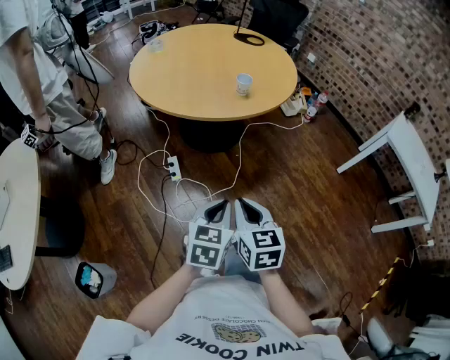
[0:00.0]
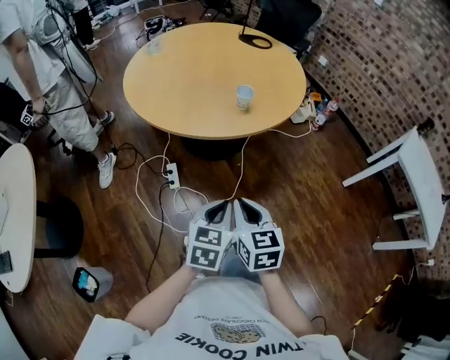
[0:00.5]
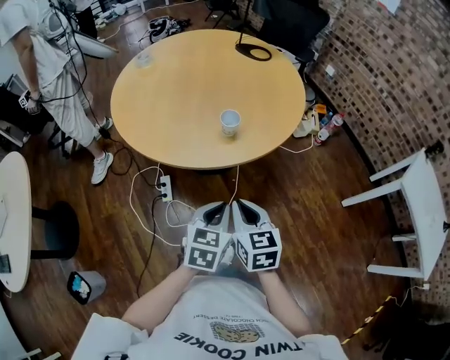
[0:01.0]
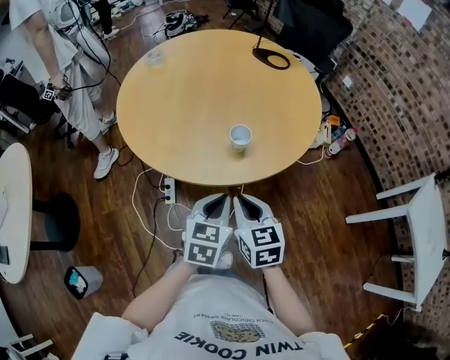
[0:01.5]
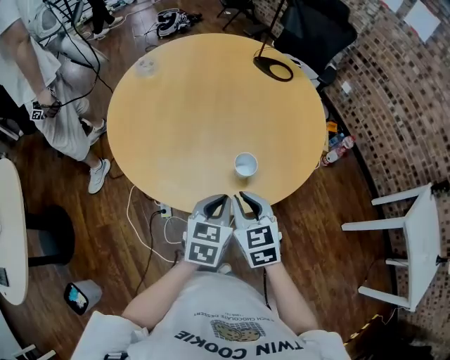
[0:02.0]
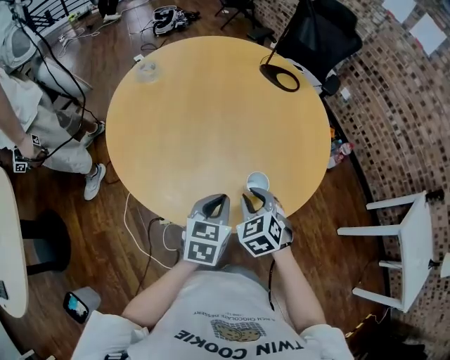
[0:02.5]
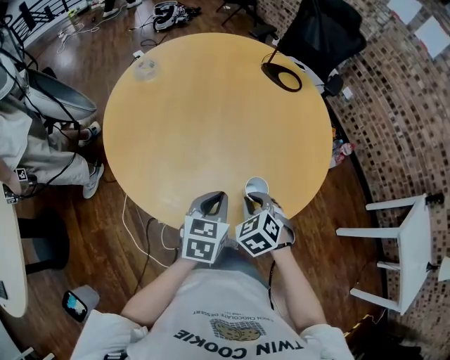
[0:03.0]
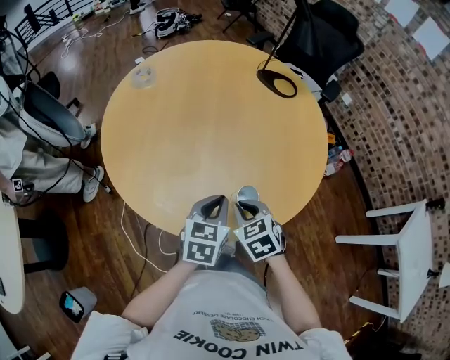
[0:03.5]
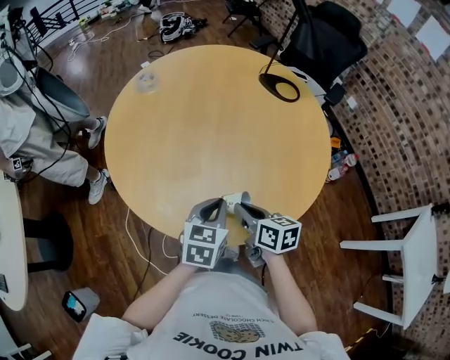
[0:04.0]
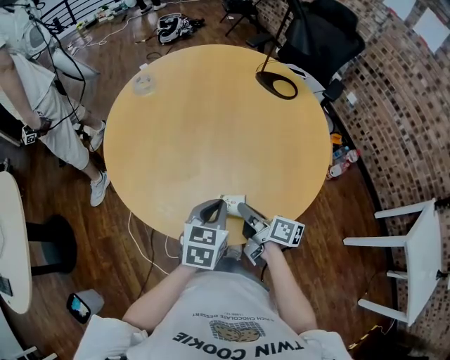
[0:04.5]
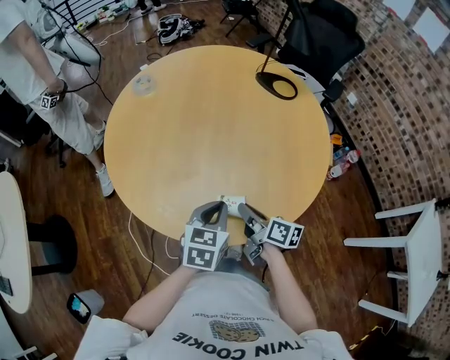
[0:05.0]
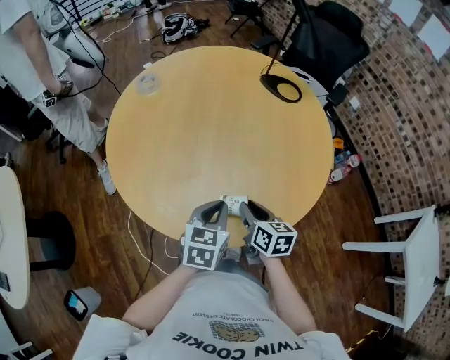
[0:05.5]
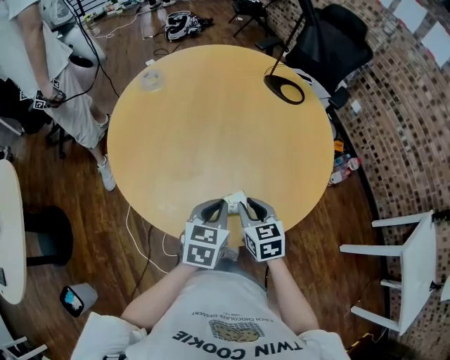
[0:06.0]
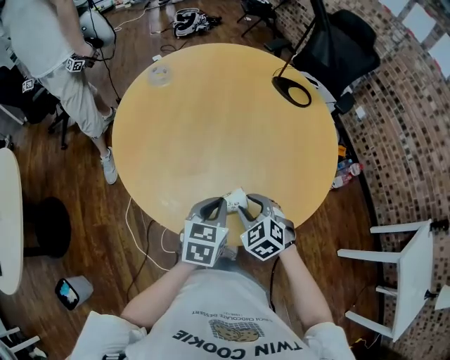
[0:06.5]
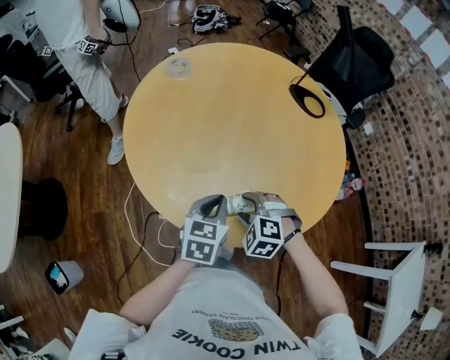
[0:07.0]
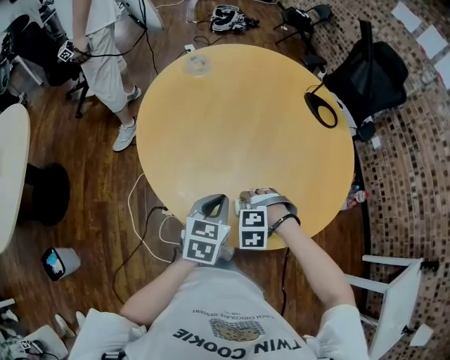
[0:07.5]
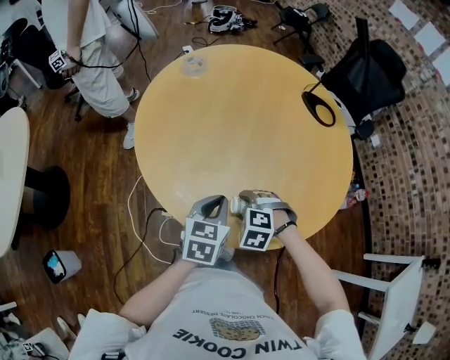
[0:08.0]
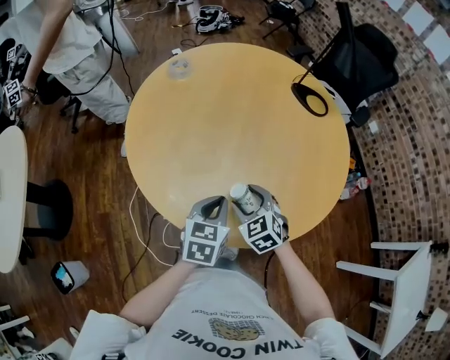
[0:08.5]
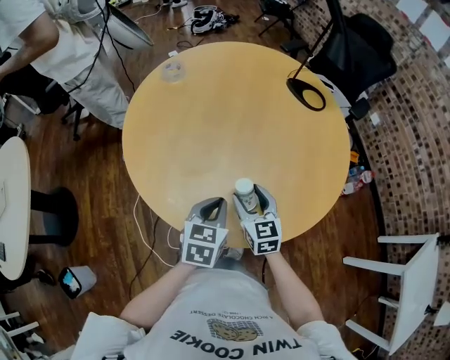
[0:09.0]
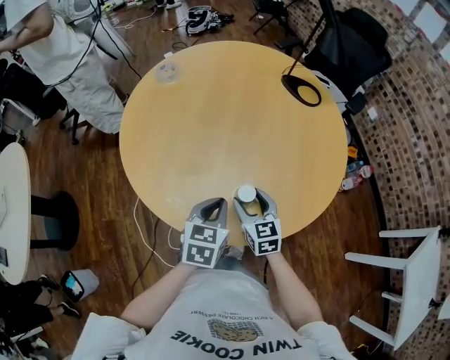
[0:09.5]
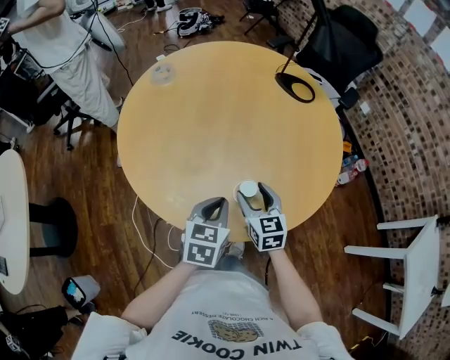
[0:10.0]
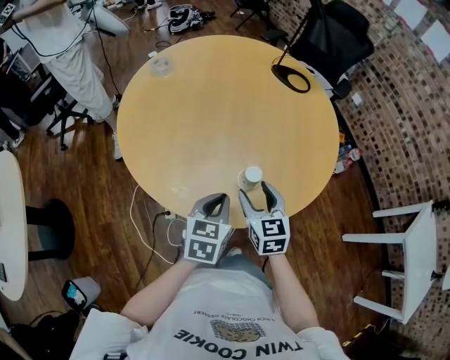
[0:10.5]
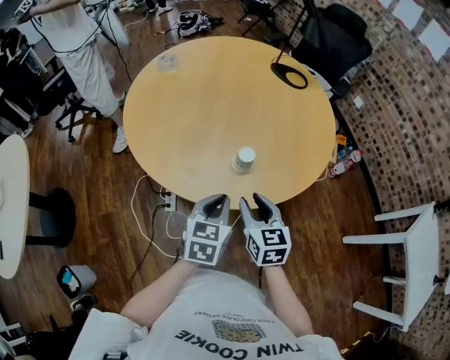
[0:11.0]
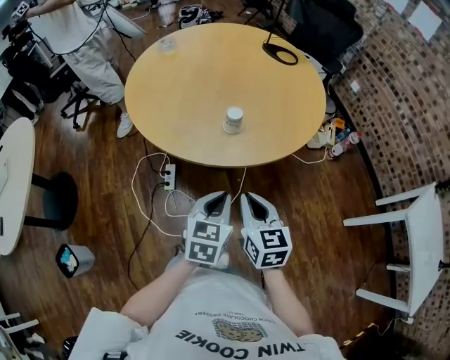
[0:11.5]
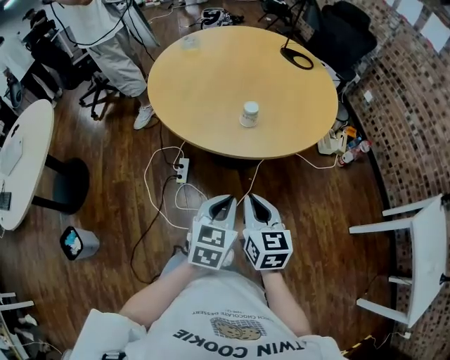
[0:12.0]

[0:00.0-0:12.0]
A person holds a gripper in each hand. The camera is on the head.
0:00.0 to 0:02.0: Both grippers are carried forward, roughly 50 cm. The right gripper rotates approximately 20 degrees.
0:02.0 to 0:04.0: The grippers both shift forward by some 10 cm. The right gripper rotates about 40 degrees.
0:04.0 to 0:06.0: The right gripper changes its angle by approximately 30 degrees.
0:06.0 to 0:08.0: The left gripper shifts by roughly 10 cm; the right gripper changes place by roughly 10 cm, rolls counterclockwise, seen from behind, by about 70 degrees, and opens.
0:08.0 to 0:10.0: The right gripper moves to the right and upward, roughly 10 cm, and twists roughly 70 degrees clockwise, seen from behind. Meanwhile the left gripper is displaced to the right by approximately 5 cm.
0:10.0 to 0:12.0: Both grippers move backward, approximately 35 cm. The right gripper closes its fingers.

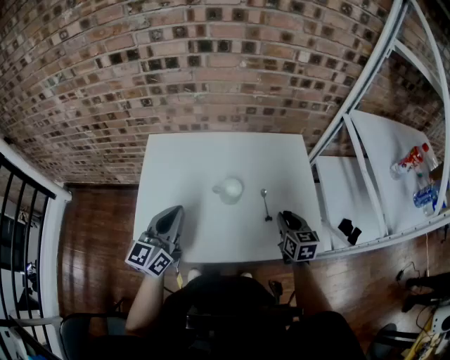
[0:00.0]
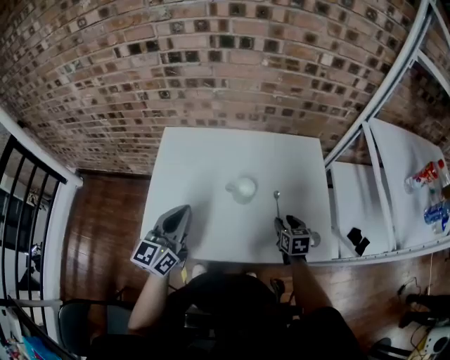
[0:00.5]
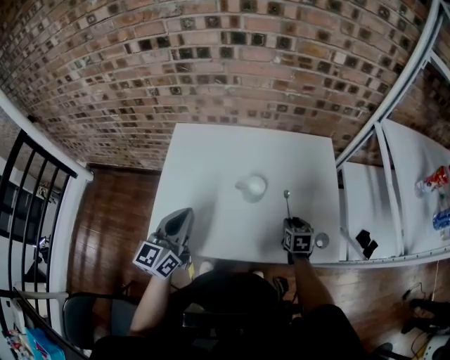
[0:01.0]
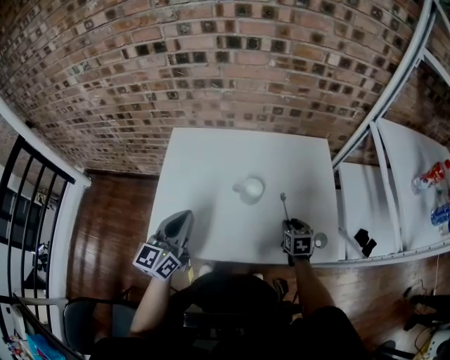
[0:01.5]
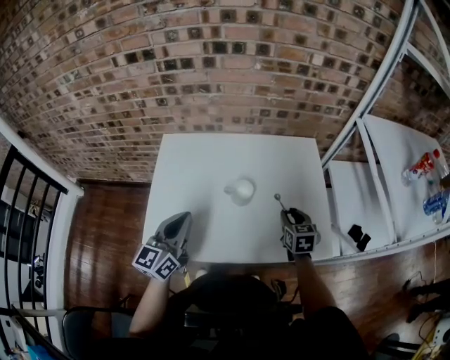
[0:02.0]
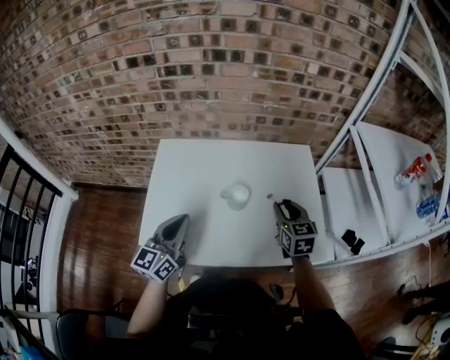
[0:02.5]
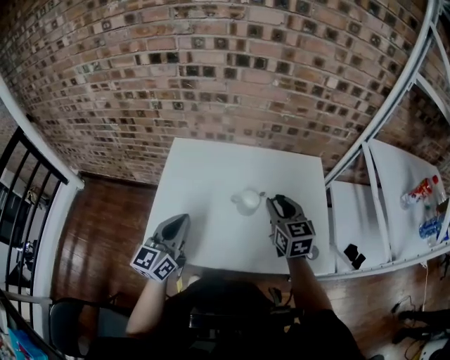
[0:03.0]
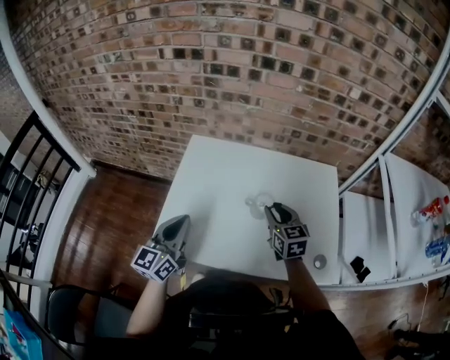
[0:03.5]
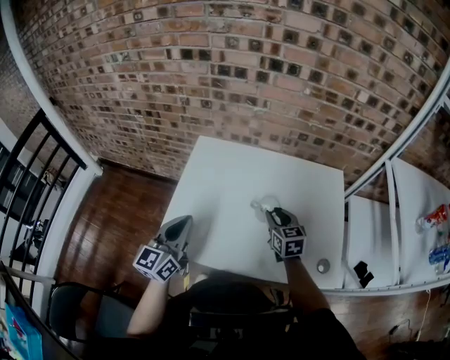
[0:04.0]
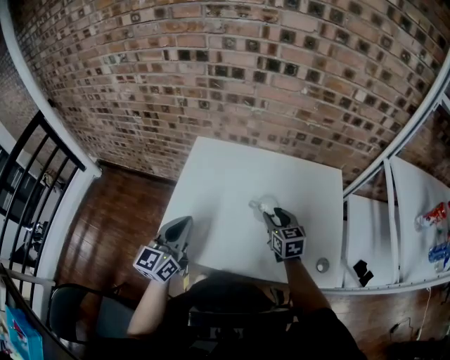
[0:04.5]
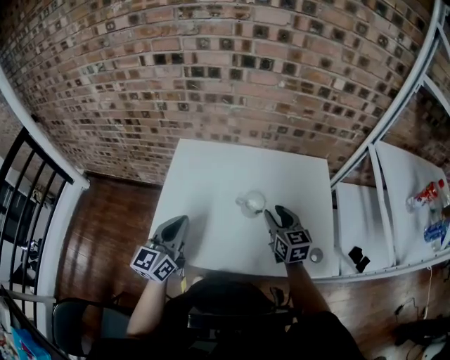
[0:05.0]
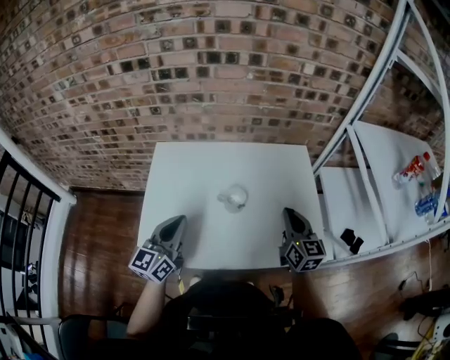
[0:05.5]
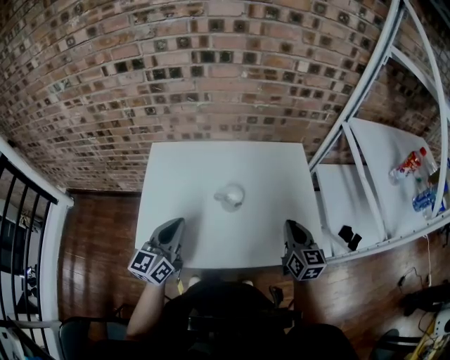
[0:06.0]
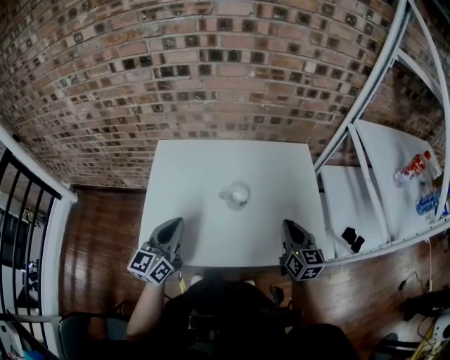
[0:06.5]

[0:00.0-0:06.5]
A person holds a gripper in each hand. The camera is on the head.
0:00.0 to 0:02.0: The right gripper travels downward and back again, approximately 10 cm each way.
0:02.0 to 0:04.5: The right gripper travels to the left by some 15 cm, and turns by approximately 20 degrees. Meanwhile the left gripper goes approximately 5 cm to the left.
0:04.5 to 0:06.5: The right gripper goes roughly 20 cm to the right, backward and upward, changes its angle by roughly 30 degrees, and closes, while the left gripper travels to the right by some 5 cm.

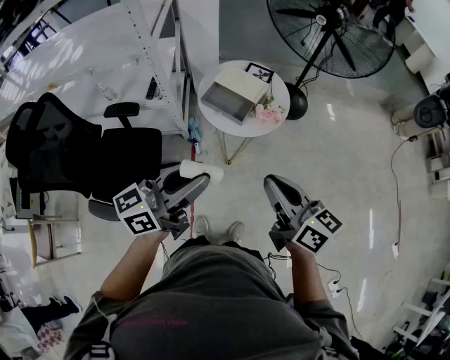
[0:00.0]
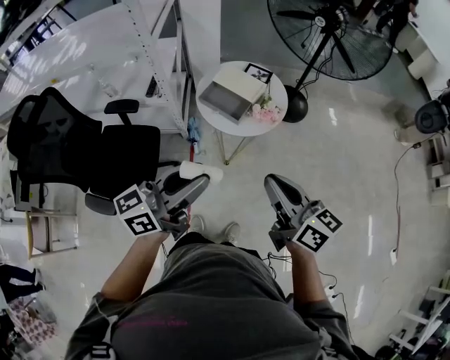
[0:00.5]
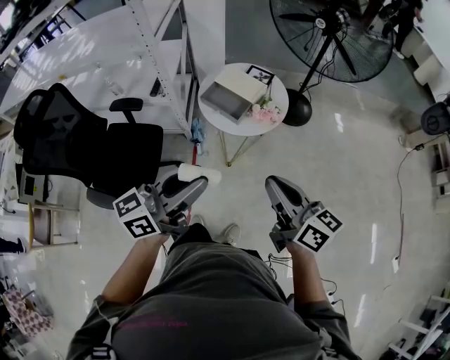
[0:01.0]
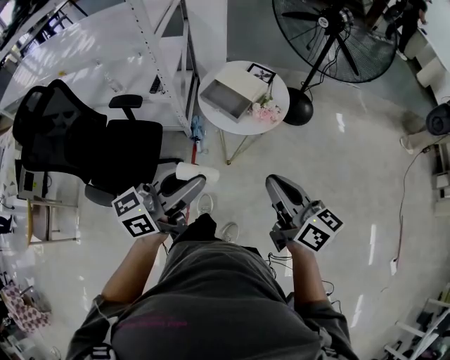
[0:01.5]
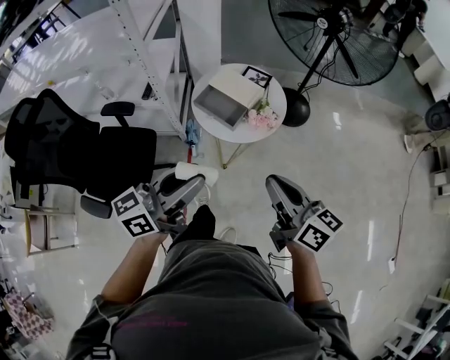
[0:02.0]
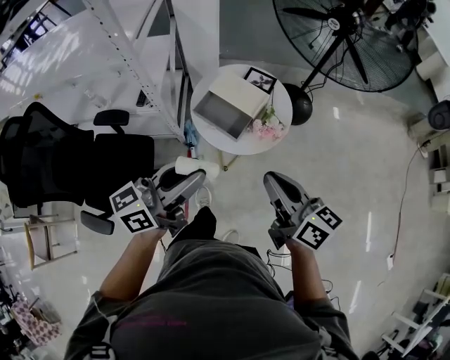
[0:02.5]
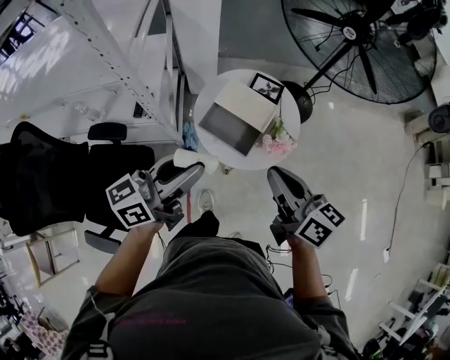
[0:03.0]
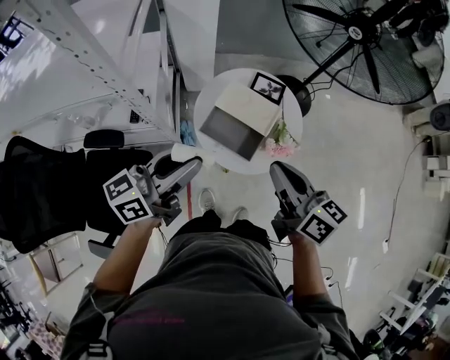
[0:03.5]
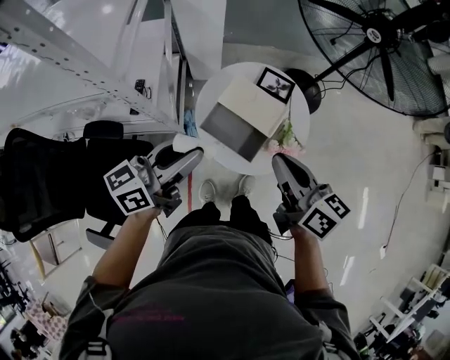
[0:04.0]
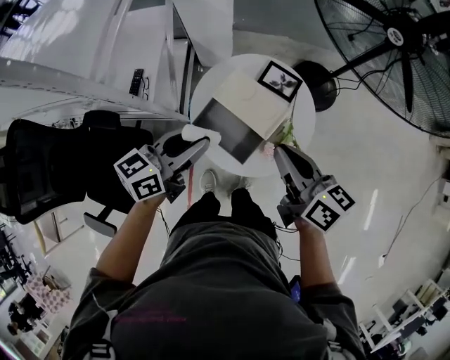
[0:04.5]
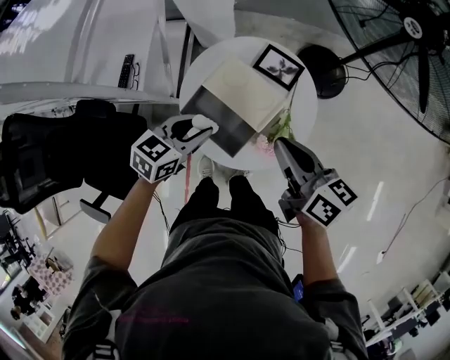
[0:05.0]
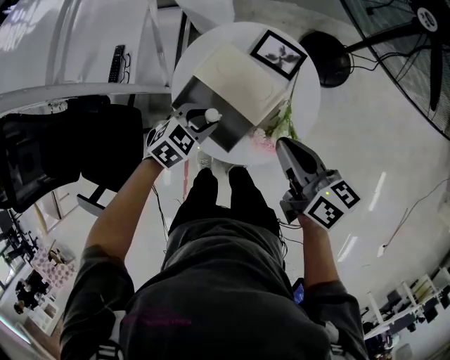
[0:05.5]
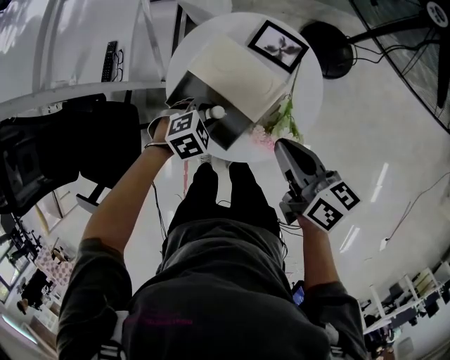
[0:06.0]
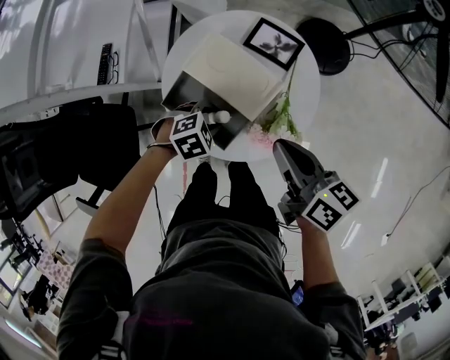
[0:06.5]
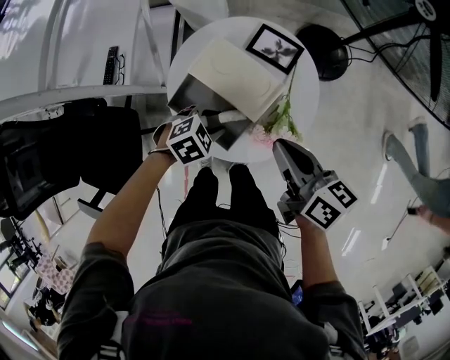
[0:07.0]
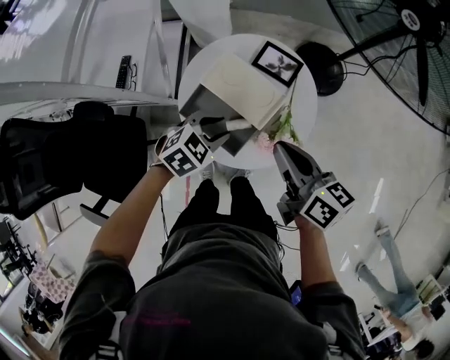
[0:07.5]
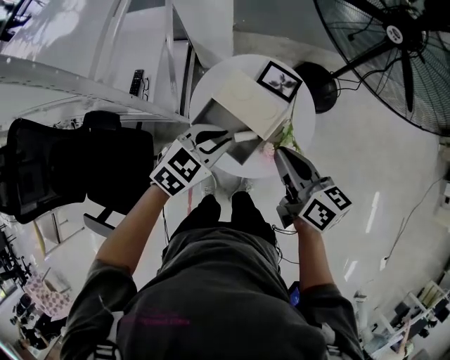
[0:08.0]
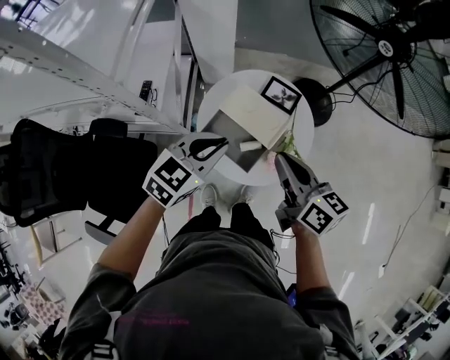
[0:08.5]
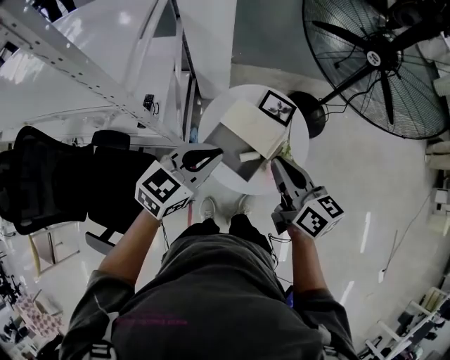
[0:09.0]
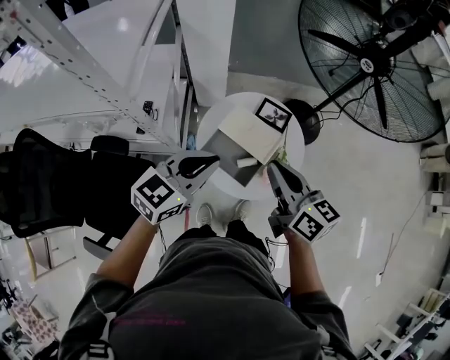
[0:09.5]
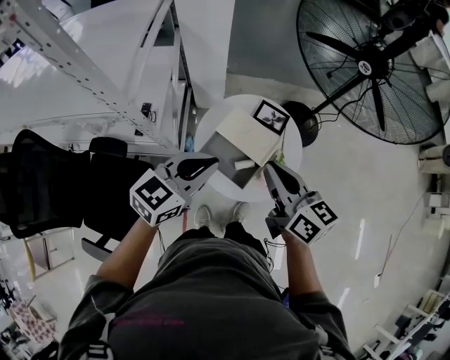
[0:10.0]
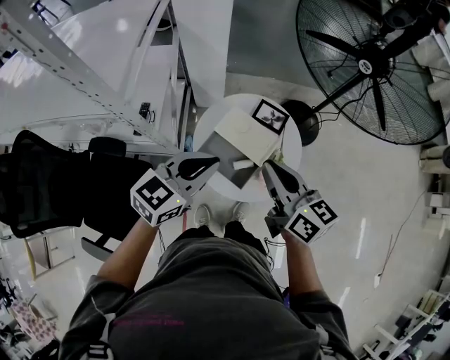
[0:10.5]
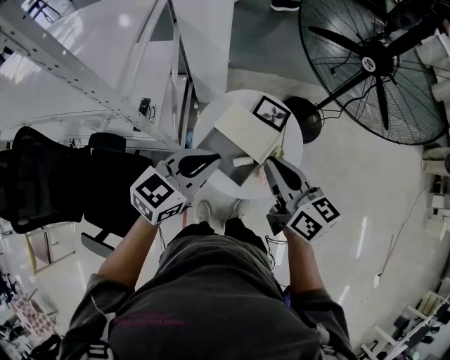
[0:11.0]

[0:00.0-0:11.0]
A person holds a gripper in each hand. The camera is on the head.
0:00.0 to 0:02.0: Both grippers move to the right, about 5 cm.
0:02.0 to 0:03.5: The two grippers go some 30 cm forward and to the left.
0:03.5 to 0:05.5: The left gripper goes roughly 35 cm downward and to the right, and angles its fingers downward, by roughly 60 degrees, while the right gripper travels downward, forward and to the right by some 25 cm.
0:07.5 to 0:09.0: The left gripper shifts about 25 cm upward, points its fingers some 30 degrees further upward, and closes up. The right gripper shifts about 15 cm upward and to the left.
0:09.0 to 0:11.0: The grippers stay close to where they were, moving slightly.
